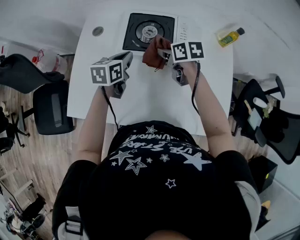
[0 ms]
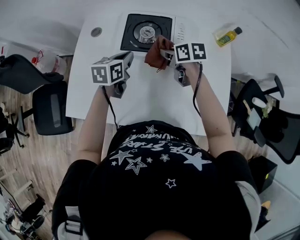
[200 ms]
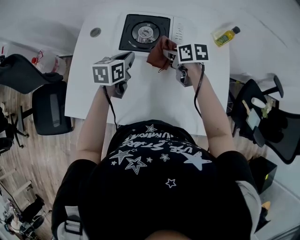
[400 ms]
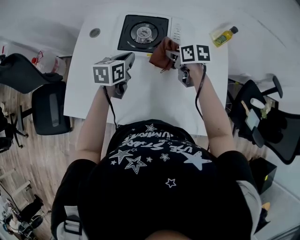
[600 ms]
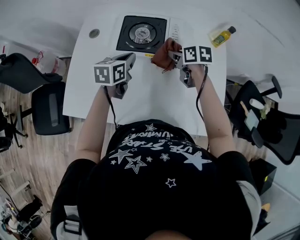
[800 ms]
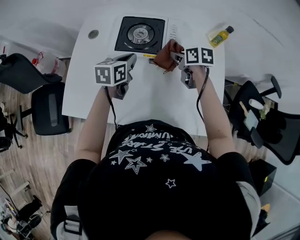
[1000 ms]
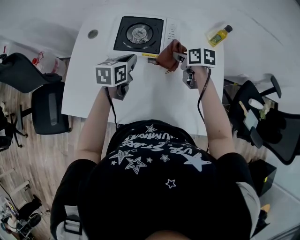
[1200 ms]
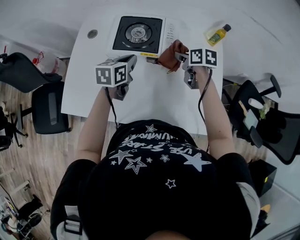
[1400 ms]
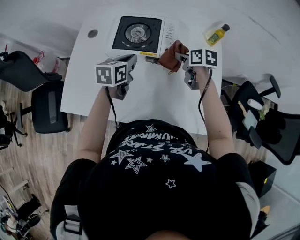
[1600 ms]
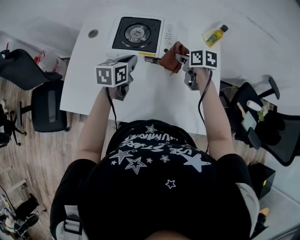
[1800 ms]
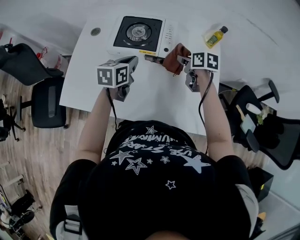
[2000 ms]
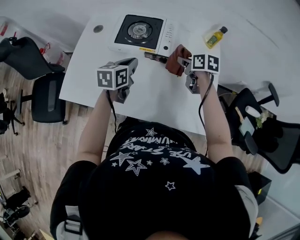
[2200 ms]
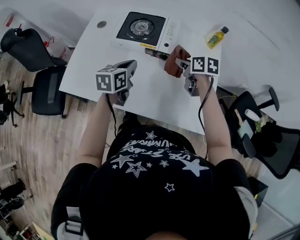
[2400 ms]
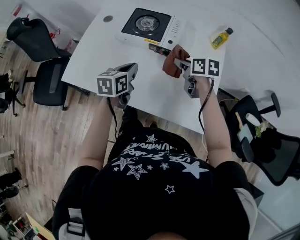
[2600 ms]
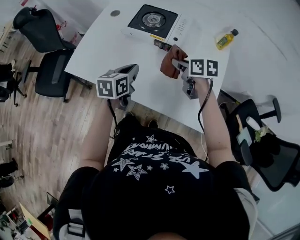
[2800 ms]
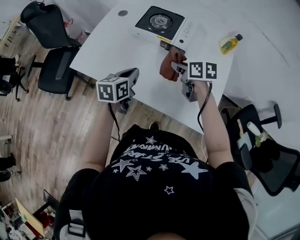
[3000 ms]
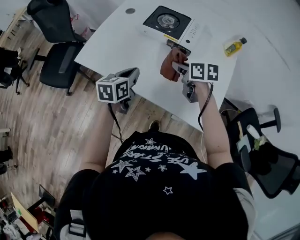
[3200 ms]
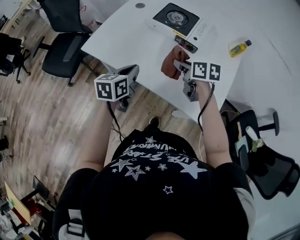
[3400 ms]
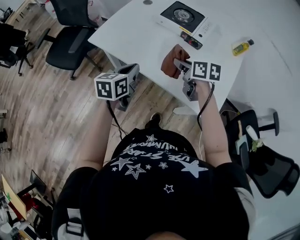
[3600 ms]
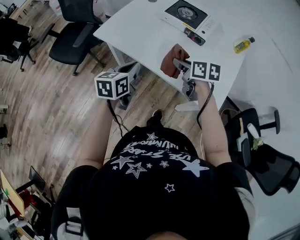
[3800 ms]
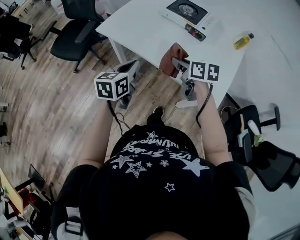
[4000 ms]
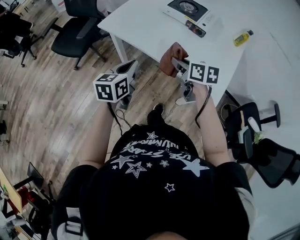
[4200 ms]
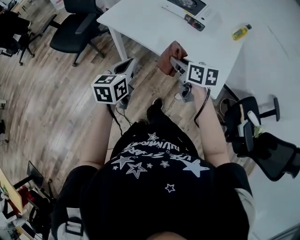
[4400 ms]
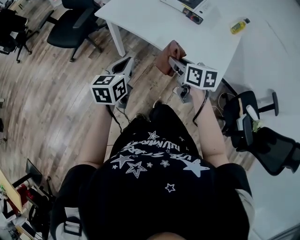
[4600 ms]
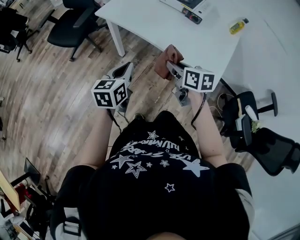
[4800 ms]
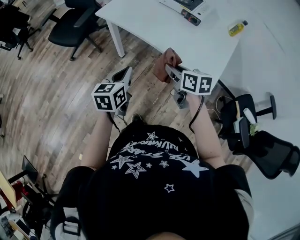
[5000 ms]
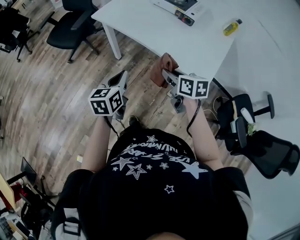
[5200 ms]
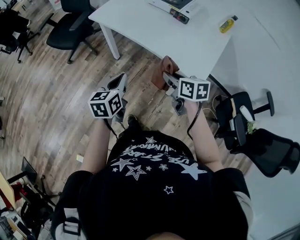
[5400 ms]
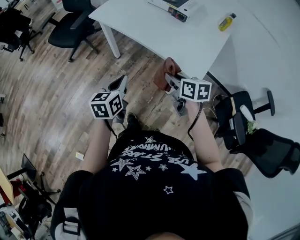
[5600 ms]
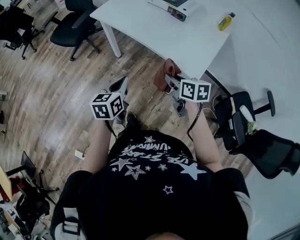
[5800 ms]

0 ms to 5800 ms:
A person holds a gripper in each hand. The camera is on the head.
0 ms to 1400 ms: The right gripper moves to the right, approximately 15 cm, while the left gripper moves to the right, approximately 5 cm.
1400 ms to 2800 ms: Both grippers move backward, roughly 15 cm.
2800 ms to 4400 ms: The two grippers go approximately 30 cm backward and to the left.
4400 ms to 5800 ms: The two grippers go roughly 20 cm backward and to the right.

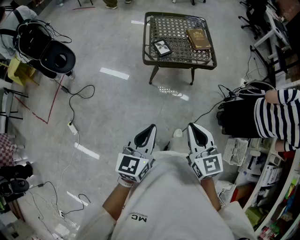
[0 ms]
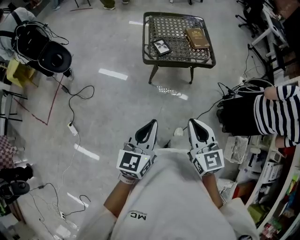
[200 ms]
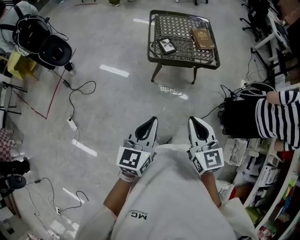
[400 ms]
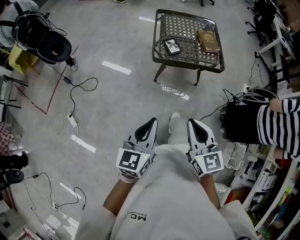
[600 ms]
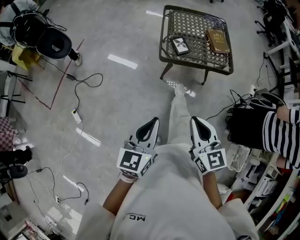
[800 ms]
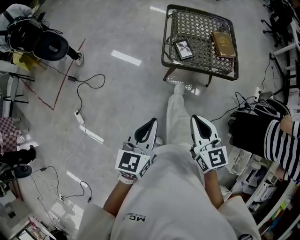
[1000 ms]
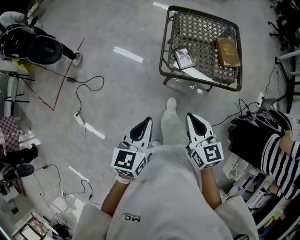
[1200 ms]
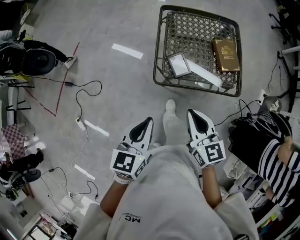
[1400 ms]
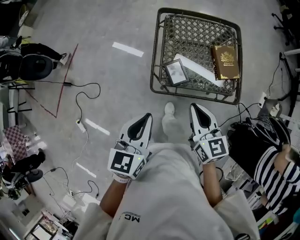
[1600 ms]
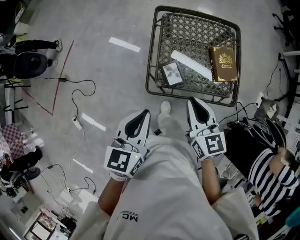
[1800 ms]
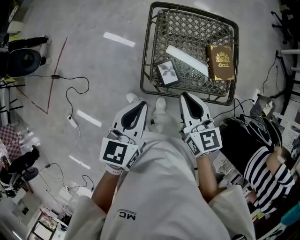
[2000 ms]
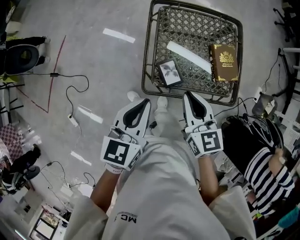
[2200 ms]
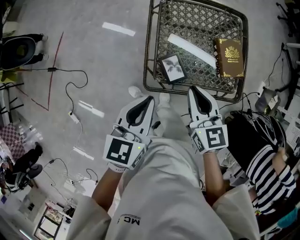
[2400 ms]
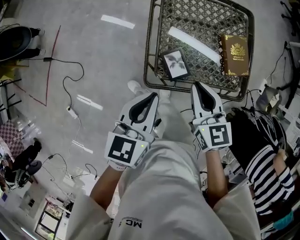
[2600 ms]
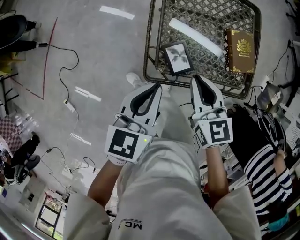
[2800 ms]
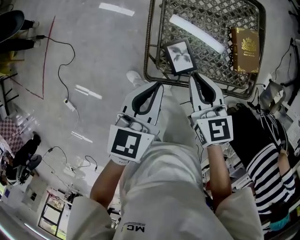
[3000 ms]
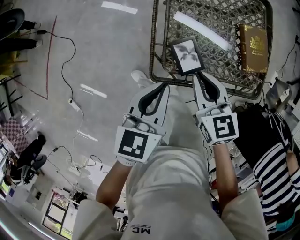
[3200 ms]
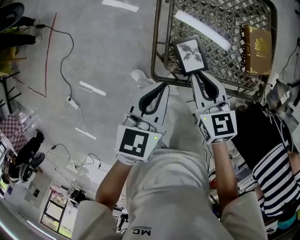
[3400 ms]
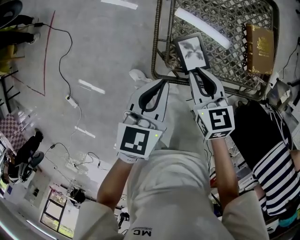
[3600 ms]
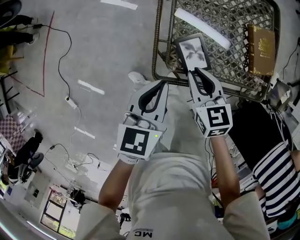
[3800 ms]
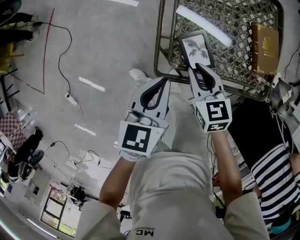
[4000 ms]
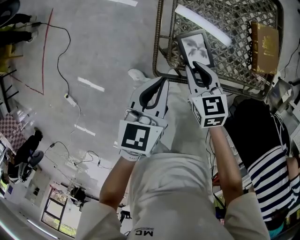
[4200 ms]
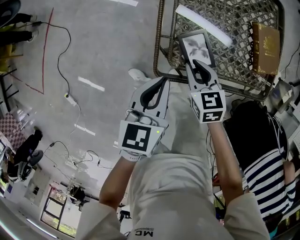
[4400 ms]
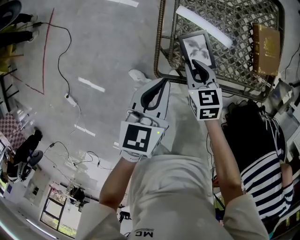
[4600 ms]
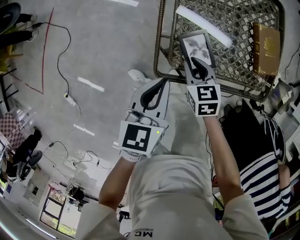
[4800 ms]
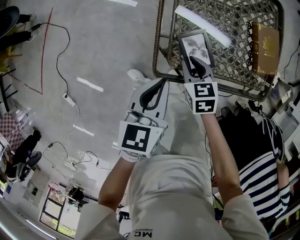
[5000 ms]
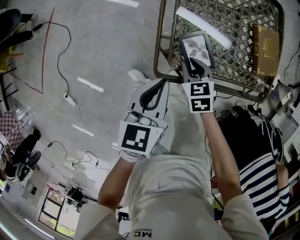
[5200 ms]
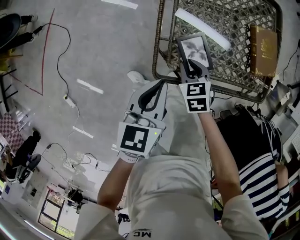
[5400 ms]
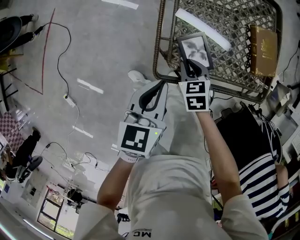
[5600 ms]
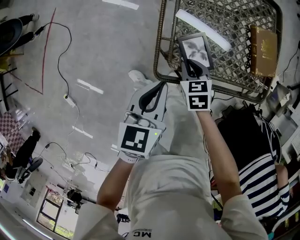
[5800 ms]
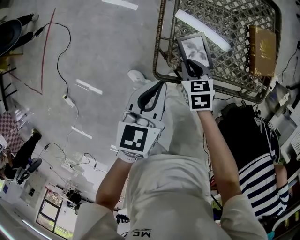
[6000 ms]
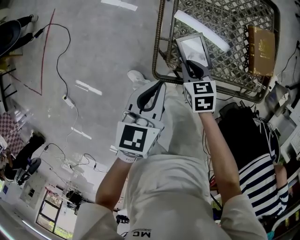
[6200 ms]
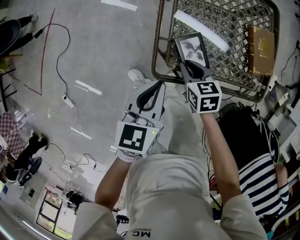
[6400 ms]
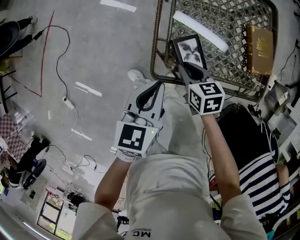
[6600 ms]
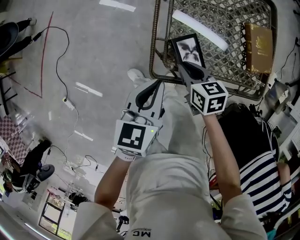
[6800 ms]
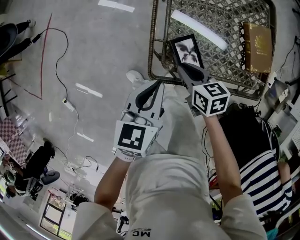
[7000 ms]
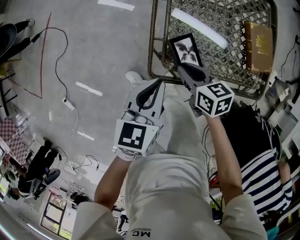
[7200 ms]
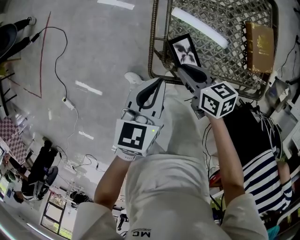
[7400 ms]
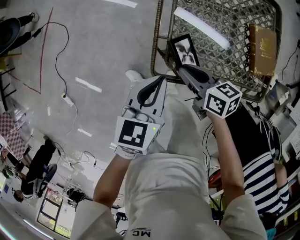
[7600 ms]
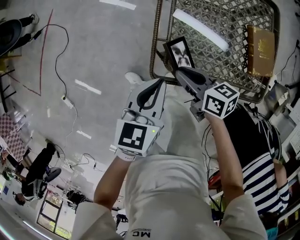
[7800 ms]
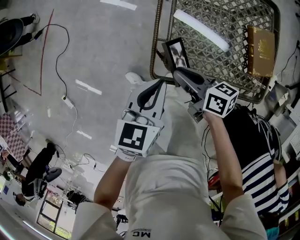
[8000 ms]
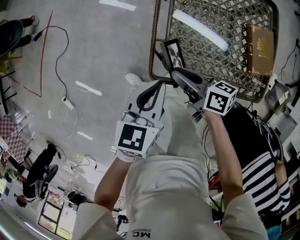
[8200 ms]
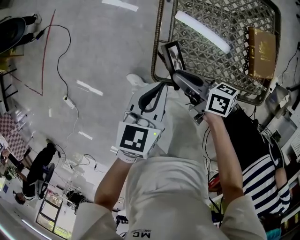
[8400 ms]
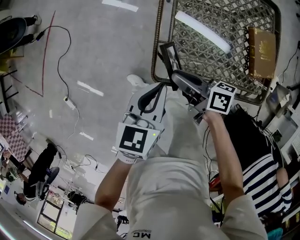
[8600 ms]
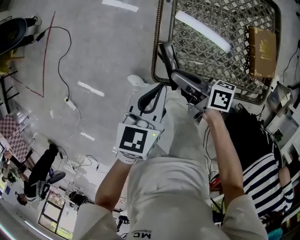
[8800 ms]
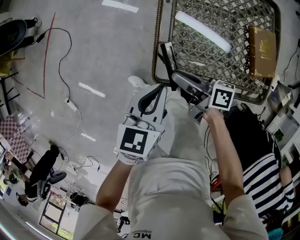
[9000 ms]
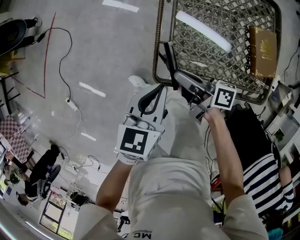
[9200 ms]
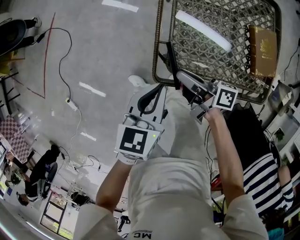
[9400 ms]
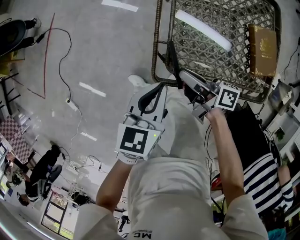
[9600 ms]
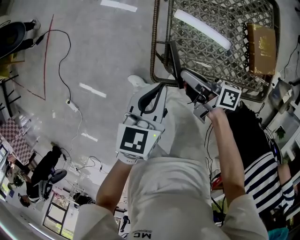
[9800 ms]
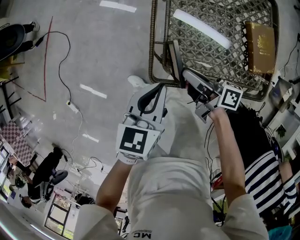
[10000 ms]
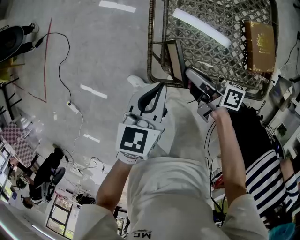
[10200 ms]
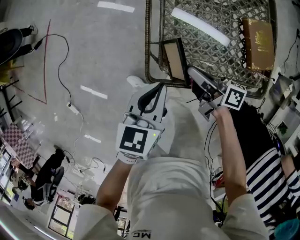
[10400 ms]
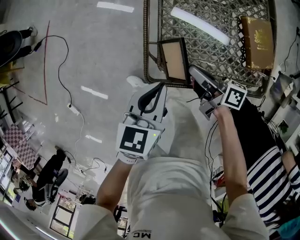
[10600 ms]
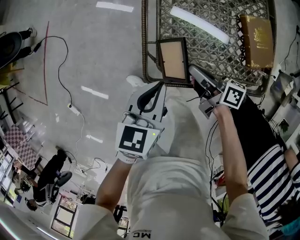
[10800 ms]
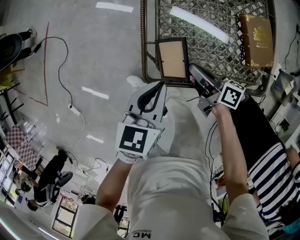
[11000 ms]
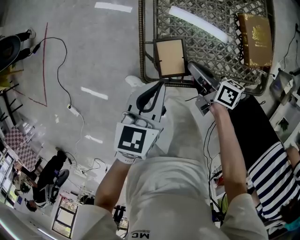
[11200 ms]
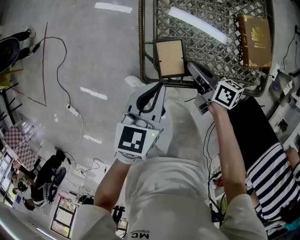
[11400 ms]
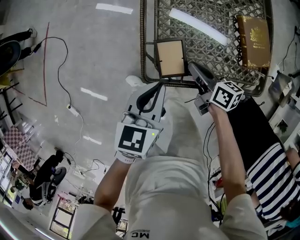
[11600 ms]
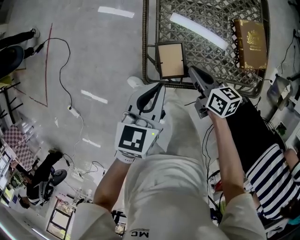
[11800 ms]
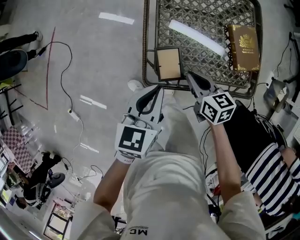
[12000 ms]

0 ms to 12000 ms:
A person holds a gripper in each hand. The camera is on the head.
0 ms to 1600 ms: The grippers both shift forward by roughly 40 cm.
1600 ms to 3000 ms: The left gripper shifts about 15 cm forward and downward; the right gripper goes about 15 cm downward and forward.
3000 ms to 4400 ms: The left gripper is displaced downward by roughly 10 cm, while the right gripper goes some 15 cm downward.
4400 ms to 6000 ms: The right gripper shifts approximately 5 cm downward.
6000 ms to 7600 ms: The right gripper travels upward by some 5 cm, and rotates about 40 degrees.
7600 ms to 9000 ms: The right gripper turns by some 30 degrees.
9000 ms to 10400 ms: The right gripper moves to the right, some 10 cm.
10400 ms to 12000 ms: The right gripper turns by approximately 50 degrees. The left gripper moves upward, some 5 cm.

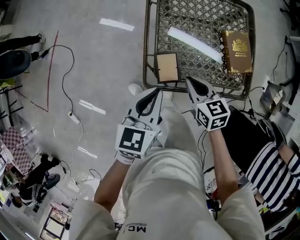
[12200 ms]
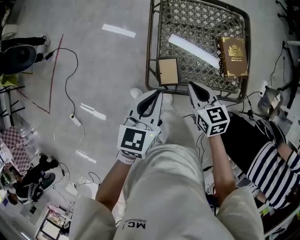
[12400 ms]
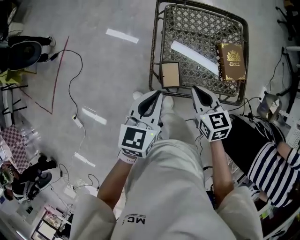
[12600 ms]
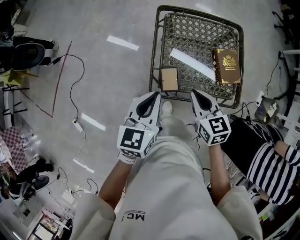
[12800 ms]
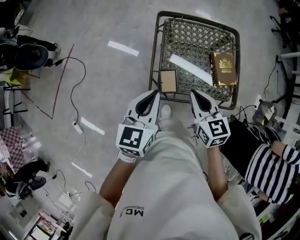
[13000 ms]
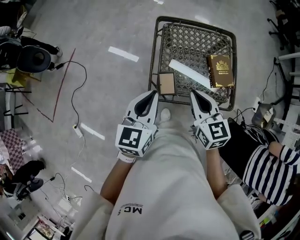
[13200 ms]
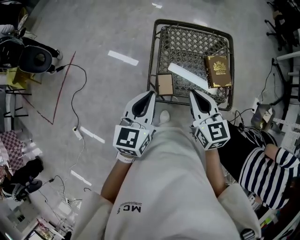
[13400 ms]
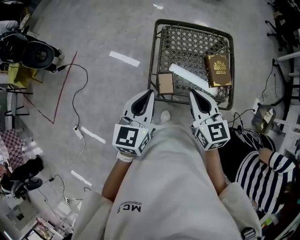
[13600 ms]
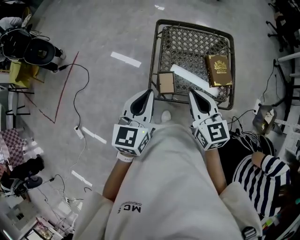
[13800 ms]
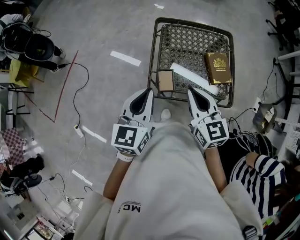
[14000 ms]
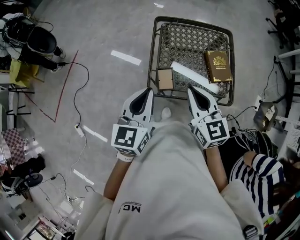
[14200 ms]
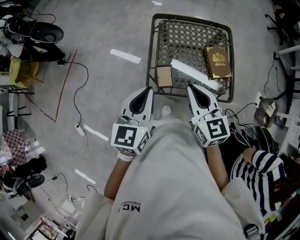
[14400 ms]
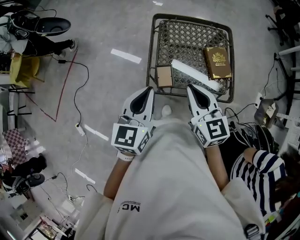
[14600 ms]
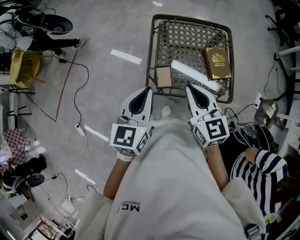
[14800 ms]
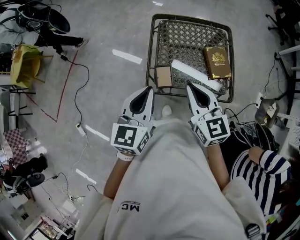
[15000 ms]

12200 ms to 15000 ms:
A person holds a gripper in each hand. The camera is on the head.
12200 ms to 13600 ms: Both grippers move upward, about 20 cm. The right gripper changes its angle by approximately 30 degrees.
13600 ms to 15000 ms: There are only small adjustments of the grippers.

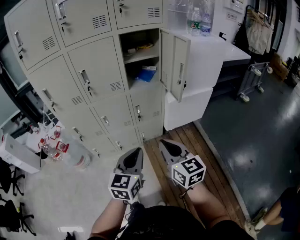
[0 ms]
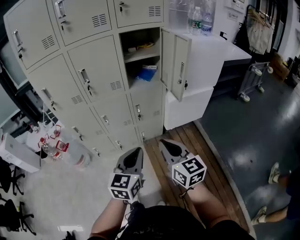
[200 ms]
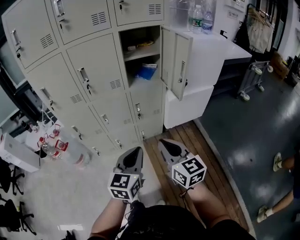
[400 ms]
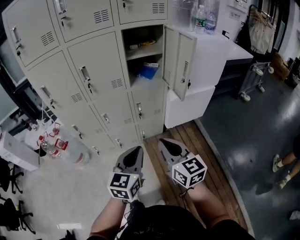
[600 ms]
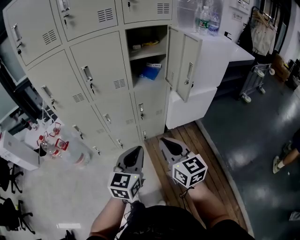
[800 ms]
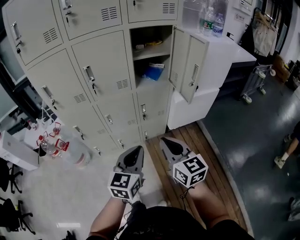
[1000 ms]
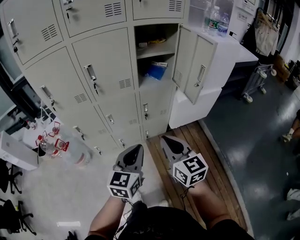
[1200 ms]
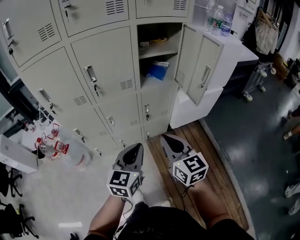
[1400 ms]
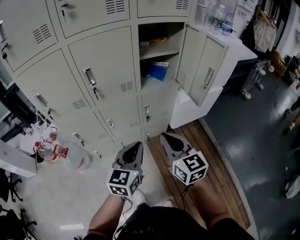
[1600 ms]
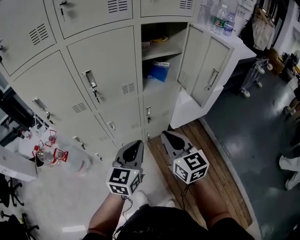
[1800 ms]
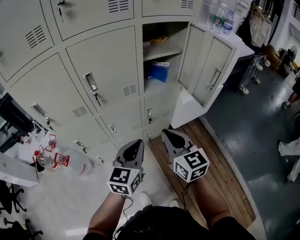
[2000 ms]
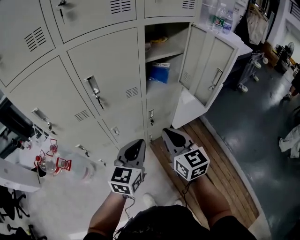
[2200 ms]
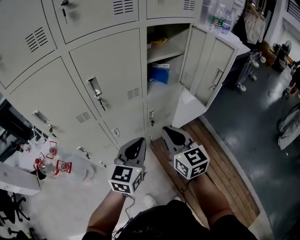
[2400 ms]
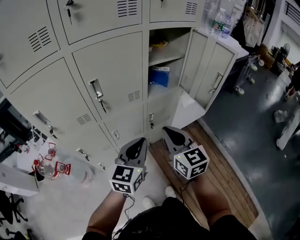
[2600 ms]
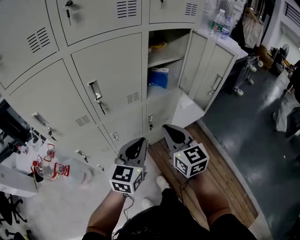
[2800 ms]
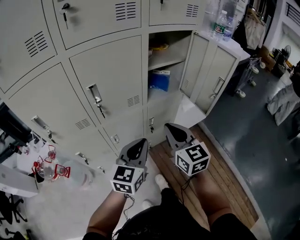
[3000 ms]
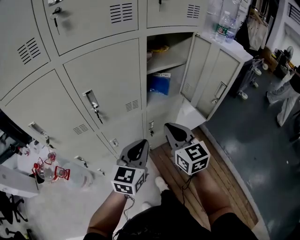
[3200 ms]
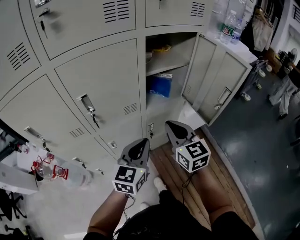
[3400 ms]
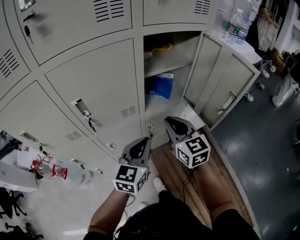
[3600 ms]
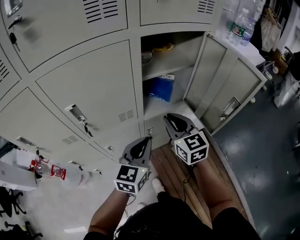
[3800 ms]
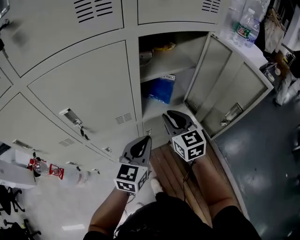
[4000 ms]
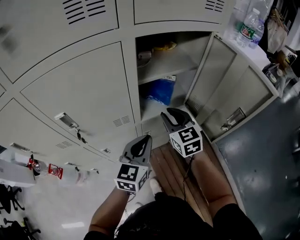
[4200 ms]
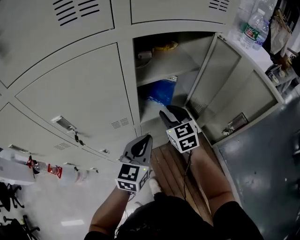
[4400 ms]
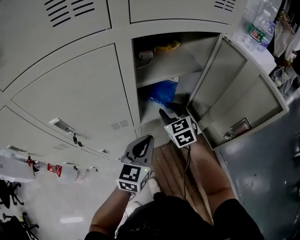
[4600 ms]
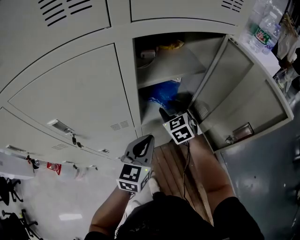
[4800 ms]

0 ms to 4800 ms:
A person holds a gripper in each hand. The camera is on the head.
0 ms to 1600 ms: Both grippers travel together forward and to the left, roughly 15 cm.
1600 ms to 3200 ms: The two grippers go approximately 15 cm forward.
3200 ms to 4800 ms: The right gripper is displaced forward and downward by roughly 35 cm, turns by roughly 30 degrees, and opens its fingers; the left gripper heads forward, covering some 20 cm.
